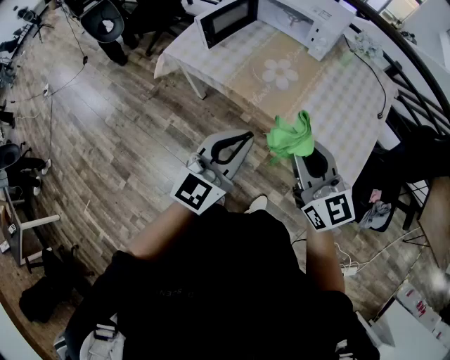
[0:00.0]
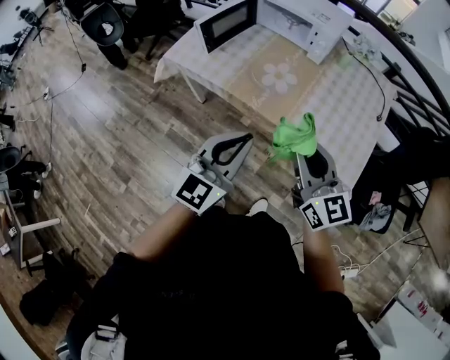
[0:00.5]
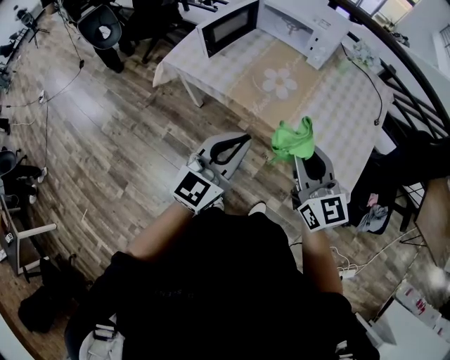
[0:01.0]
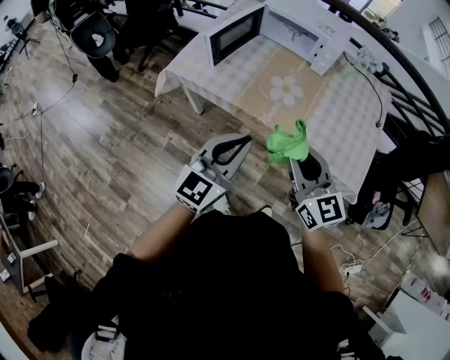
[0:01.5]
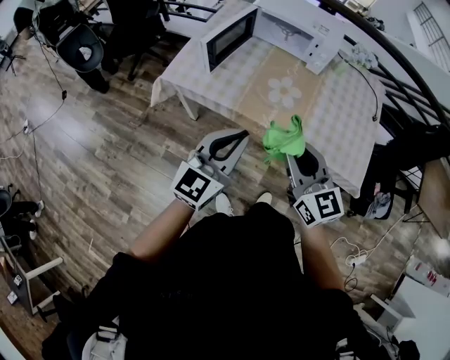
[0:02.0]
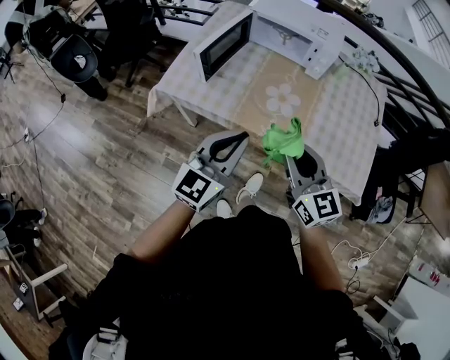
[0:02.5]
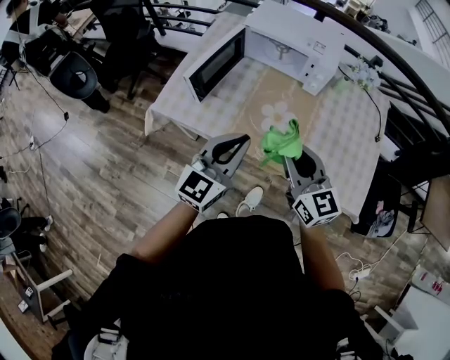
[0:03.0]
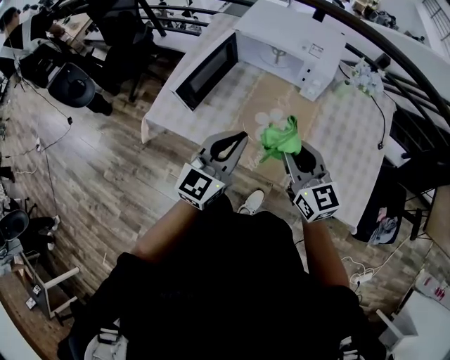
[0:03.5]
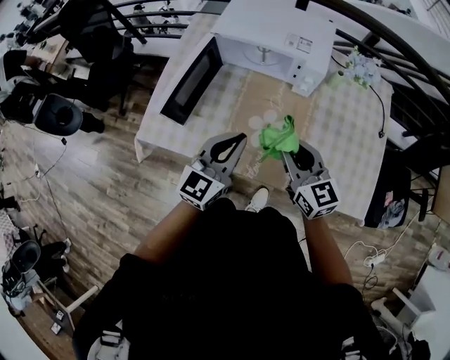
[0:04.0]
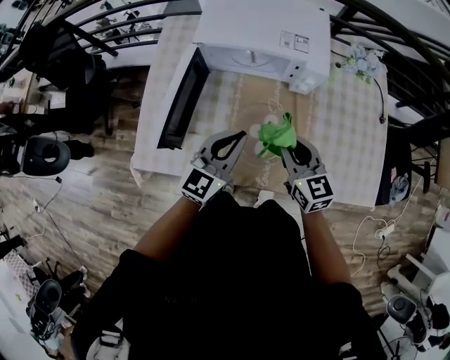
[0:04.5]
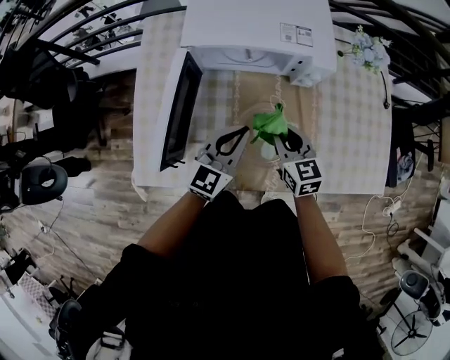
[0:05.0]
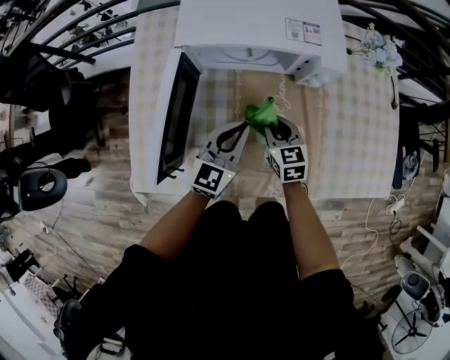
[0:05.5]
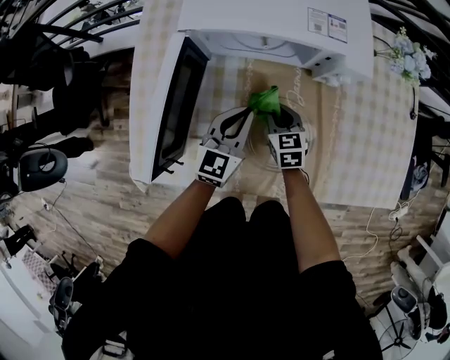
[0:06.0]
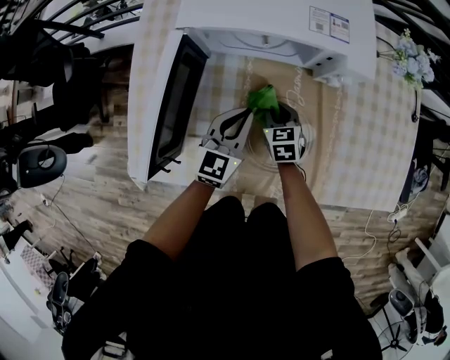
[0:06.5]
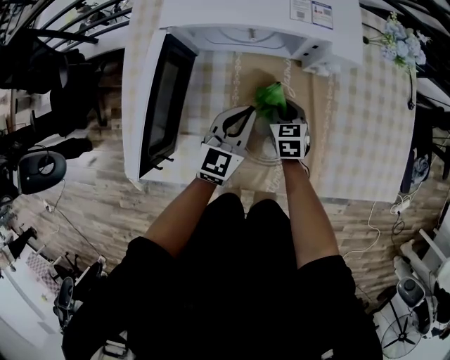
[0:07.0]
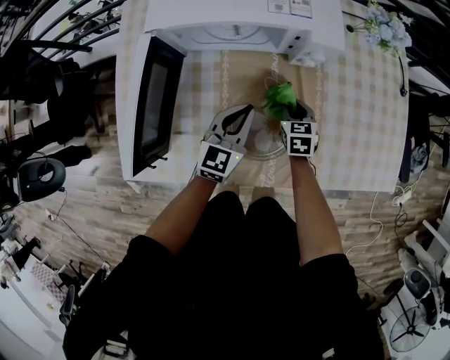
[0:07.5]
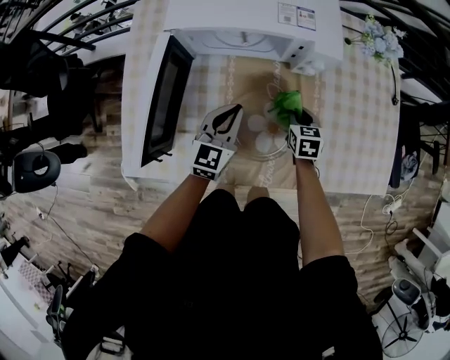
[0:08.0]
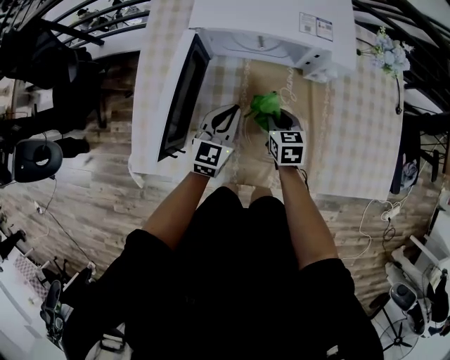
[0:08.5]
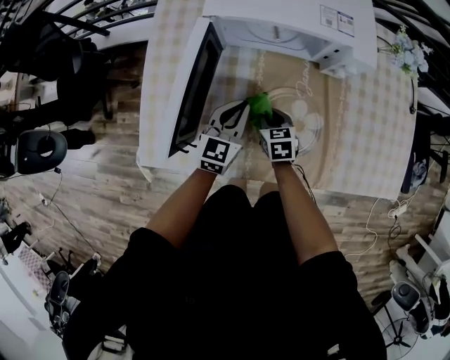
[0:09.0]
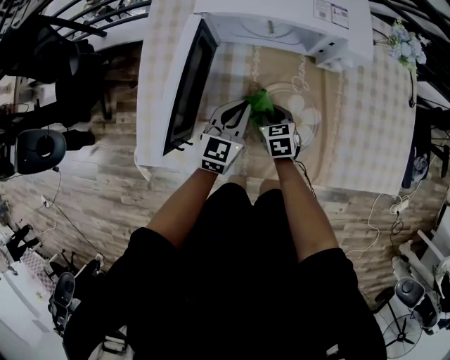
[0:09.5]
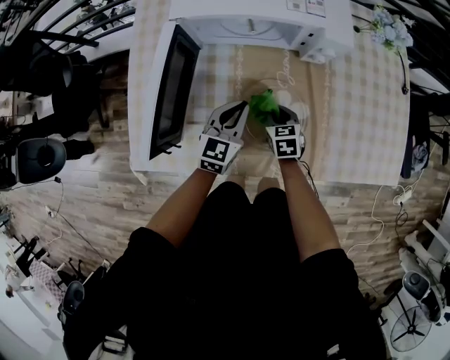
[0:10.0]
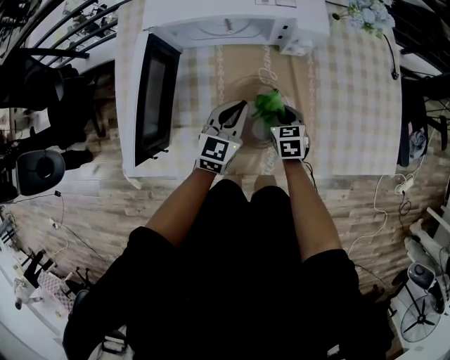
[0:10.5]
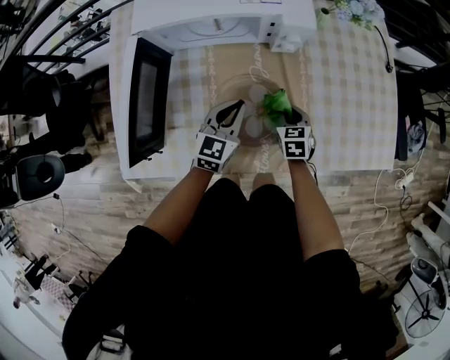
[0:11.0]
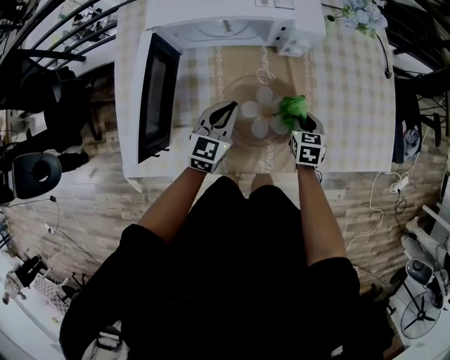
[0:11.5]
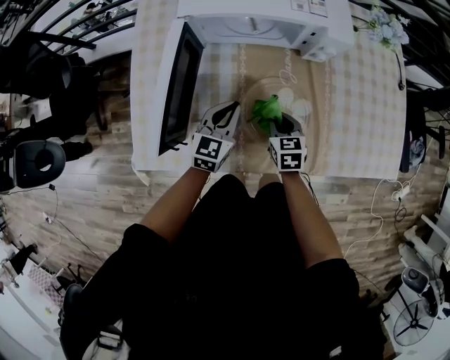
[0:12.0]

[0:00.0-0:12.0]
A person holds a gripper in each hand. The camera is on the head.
0:00.0 to 0:02.0: The two grippers go some 15 cm to the left and forward.
0:02.0 to 0:04.0: The grippers both shift forward by roughly 30 cm.
0:04.0 to 0:06.0: The two grippers go about 30 cm downward and forward. The right gripper swivels some 30 degrees.
0:06.0 to 0:08.0: The right gripper travels to the right by some 15 cm.
0:08.0 to 0:10.0: The right gripper travels to the left and backward by roughly 10 cm.
0:10.0 to 0:12.0: The left gripper goes to the right and returns, some 5 cm each way. Meanwhile the right gripper reaches roughly 15 cm to the right, then returns.

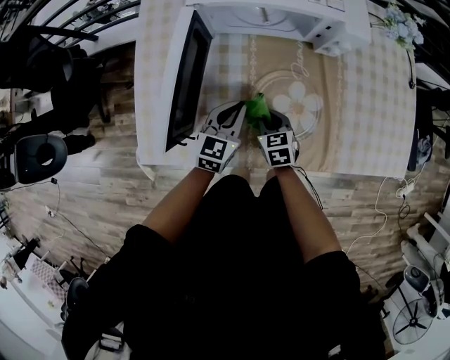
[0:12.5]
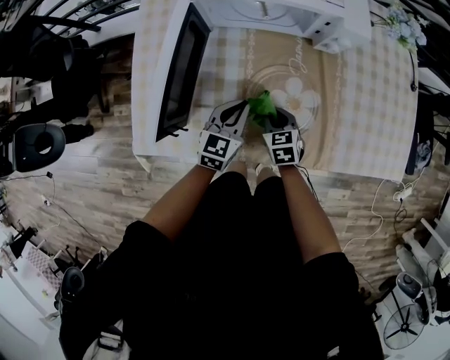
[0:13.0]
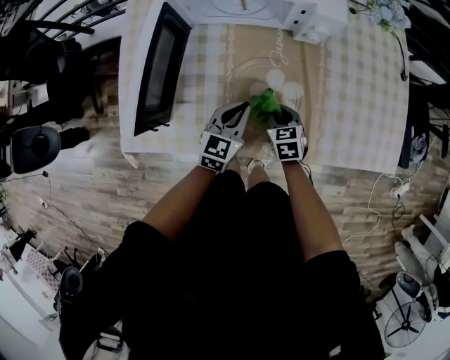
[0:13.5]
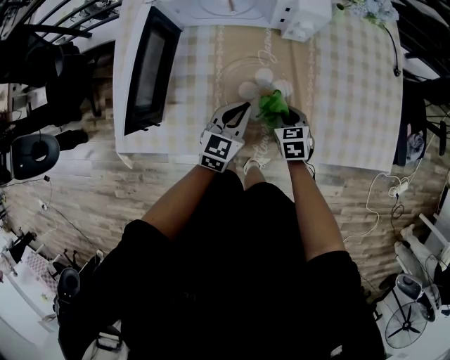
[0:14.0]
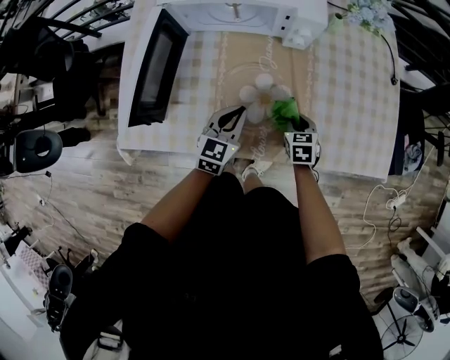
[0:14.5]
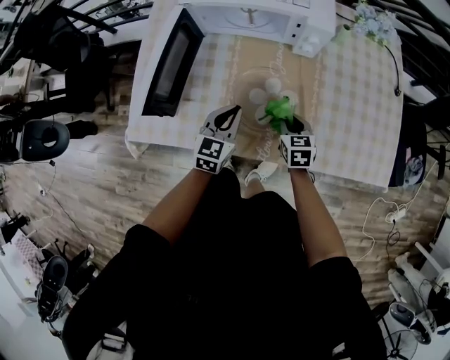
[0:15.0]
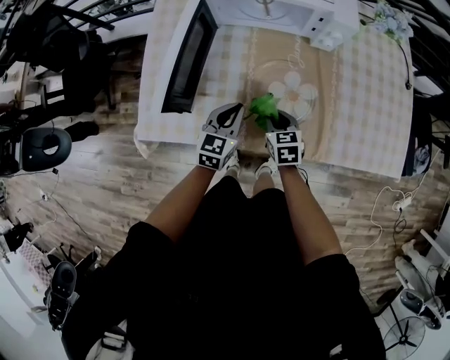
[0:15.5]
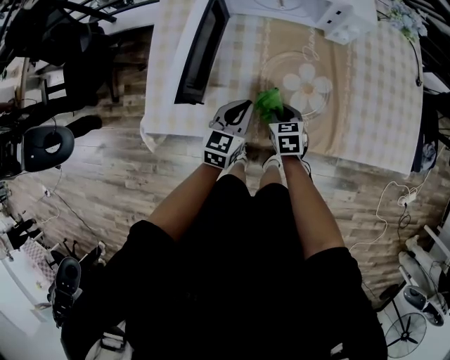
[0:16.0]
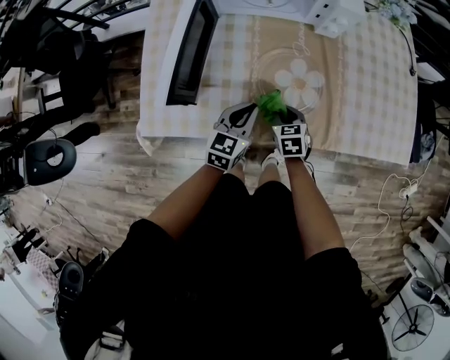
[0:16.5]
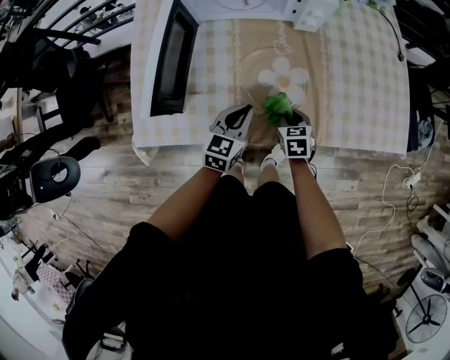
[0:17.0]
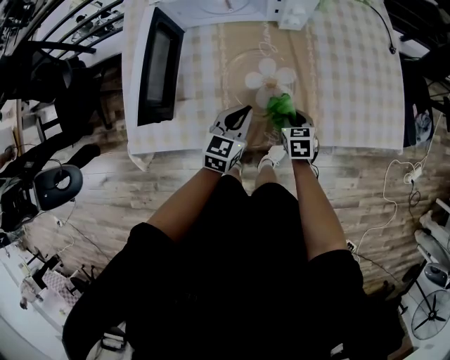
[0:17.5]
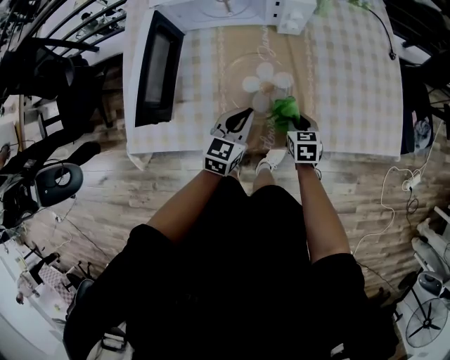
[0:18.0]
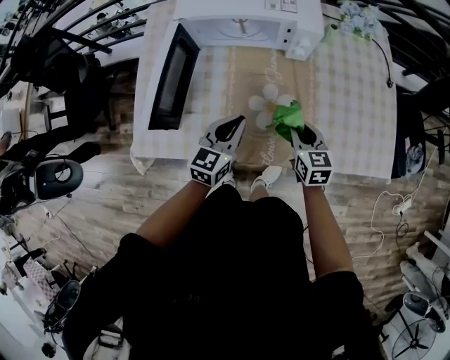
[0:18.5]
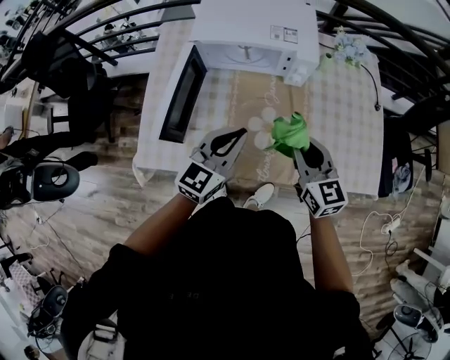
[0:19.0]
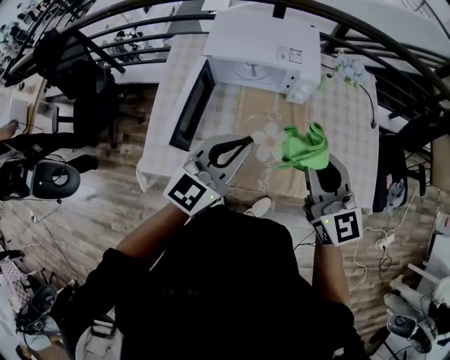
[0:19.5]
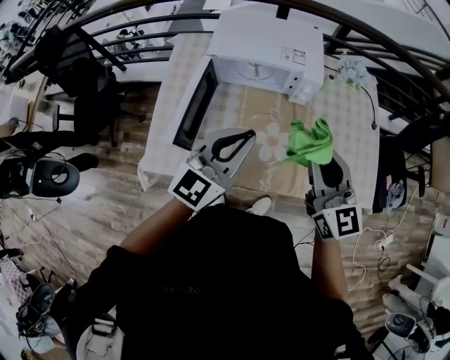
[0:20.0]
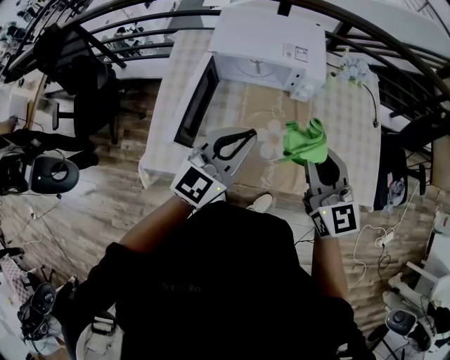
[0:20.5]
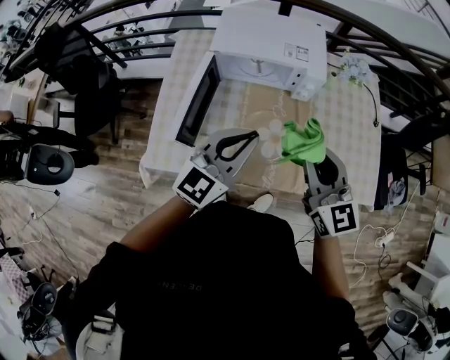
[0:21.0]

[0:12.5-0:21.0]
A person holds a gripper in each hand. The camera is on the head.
0:12.5 to 0:14.5: The left gripper goes about 10 cm to the right, while the right gripper is displaced to the right by roughly 20 cm.
0:14.5 to 0:16.5: The right gripper moves to the left, approximately 15 cm; the left gripper heads to the left and backward, covering roughly 10 cm.
0:16.5 to 0:19.0: The two grippers go approximately 25 cm upward. The left gripper turns by some 20 degrees. Meanwhile the right gripper angles its fingers upward, by some 40 degrees.
0:19.0 to 0:21.0: Both grippers move upward, roughly 10 cm.

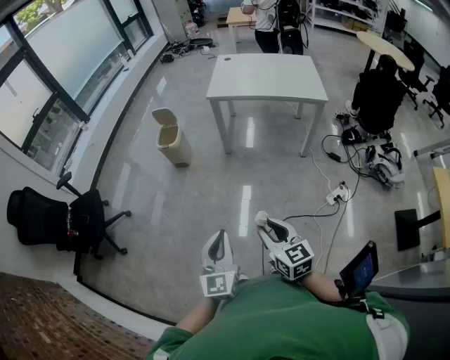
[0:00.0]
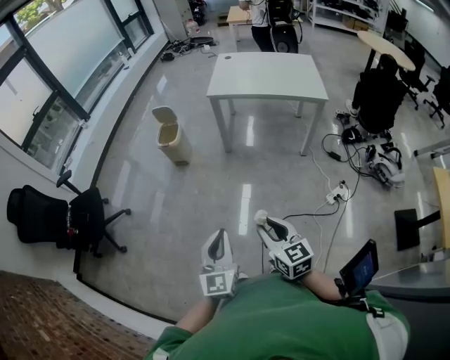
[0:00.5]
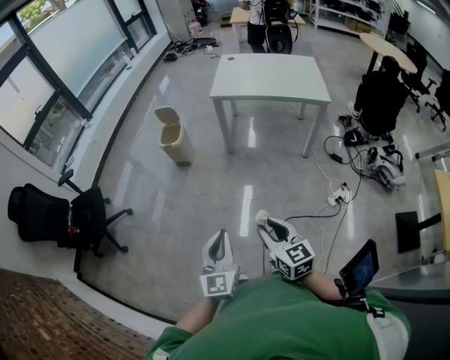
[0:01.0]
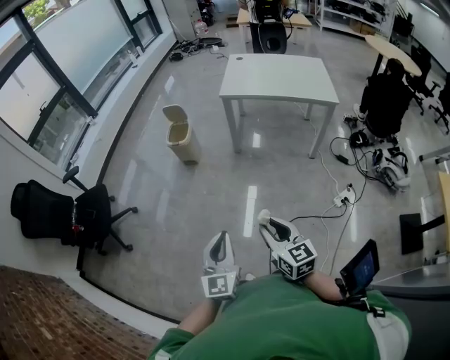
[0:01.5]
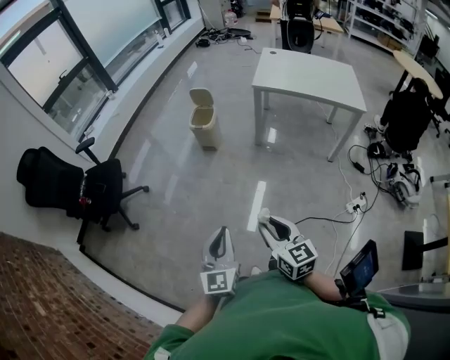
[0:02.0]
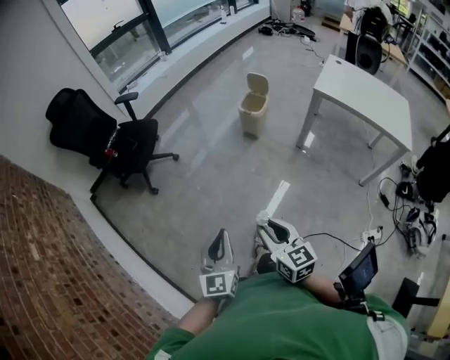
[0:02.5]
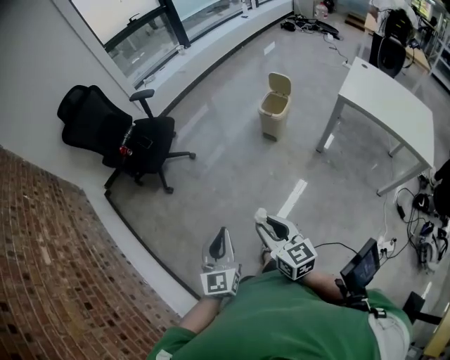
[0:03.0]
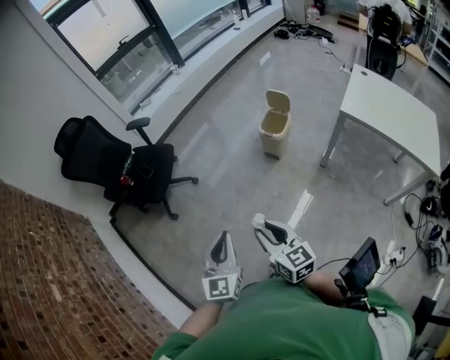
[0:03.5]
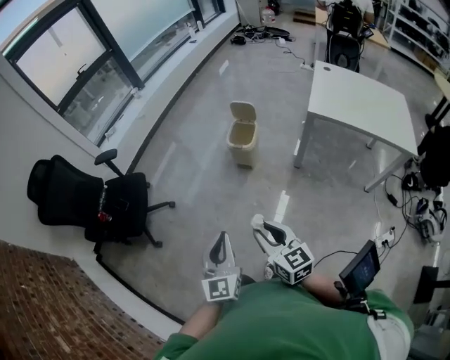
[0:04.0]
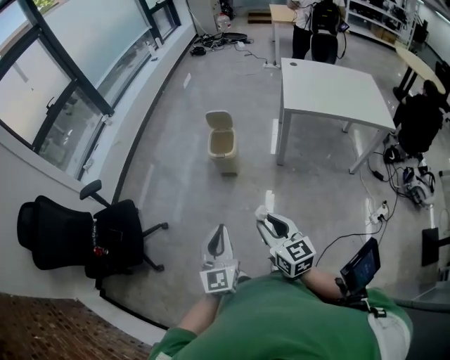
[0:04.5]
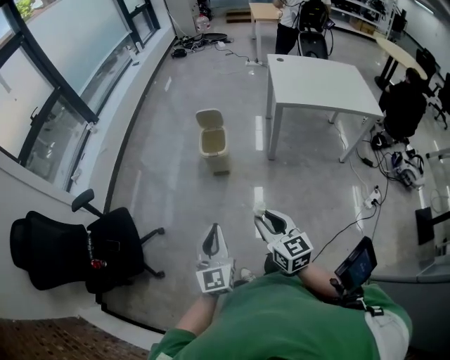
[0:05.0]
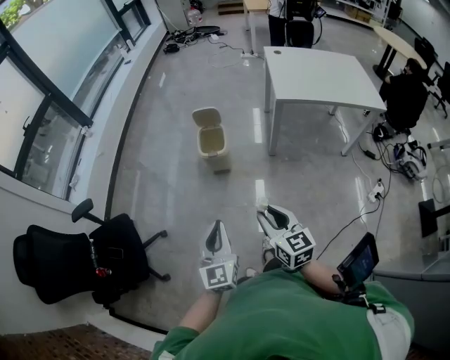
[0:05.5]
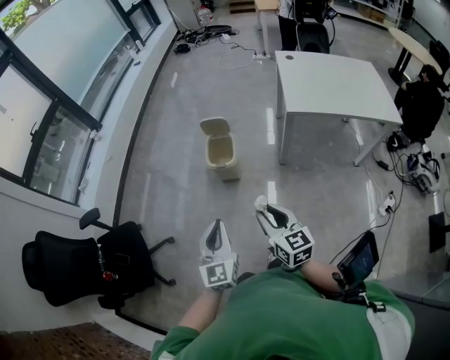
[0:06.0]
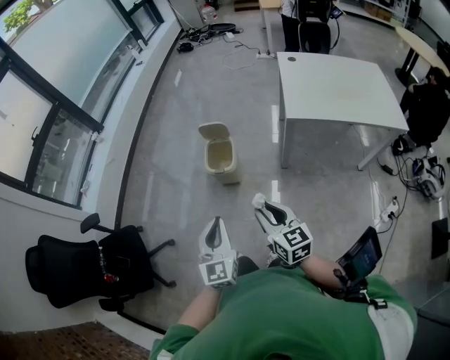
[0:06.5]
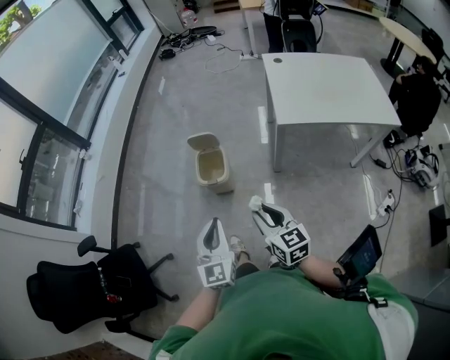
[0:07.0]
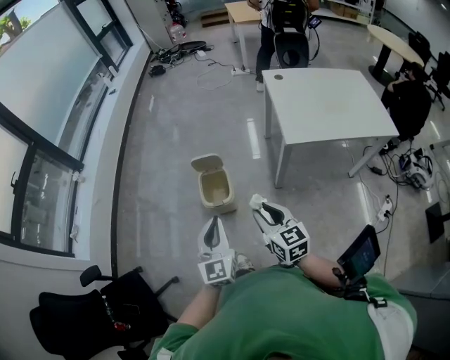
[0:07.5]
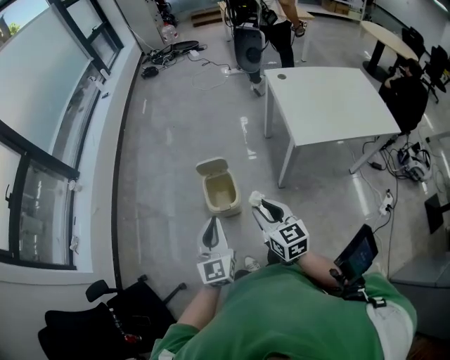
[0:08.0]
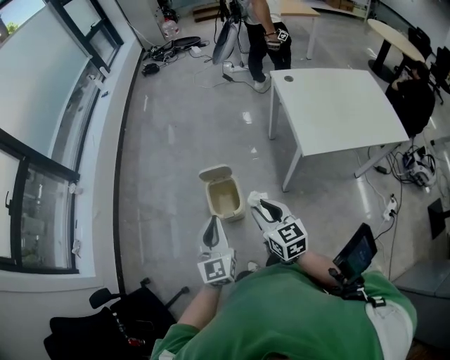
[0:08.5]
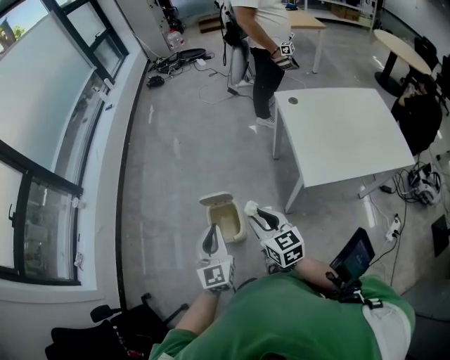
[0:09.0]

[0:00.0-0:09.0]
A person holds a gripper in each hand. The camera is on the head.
0:00.0 to 0:02.0: Both grippers move to the left, some 15 cm.
0:02.0 to 0:04.5: The right gripper shifts by about 35 cm. Meanwhile the left gripper shifts by about 35 cm.
0:04.5 to 0:07.0: Both grippers move forward, some 25 cm.
0:07.0 to 0:09.0: Both grippers move forward, some 30 cm.
